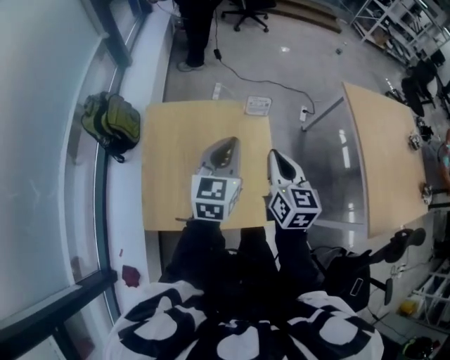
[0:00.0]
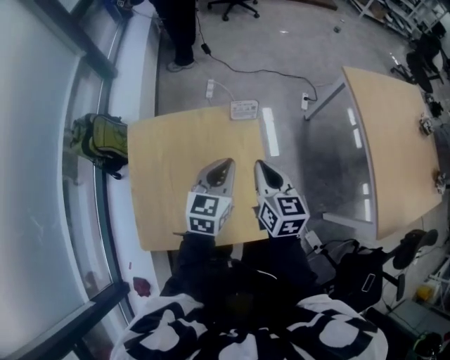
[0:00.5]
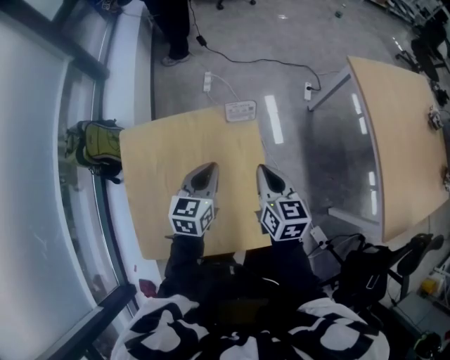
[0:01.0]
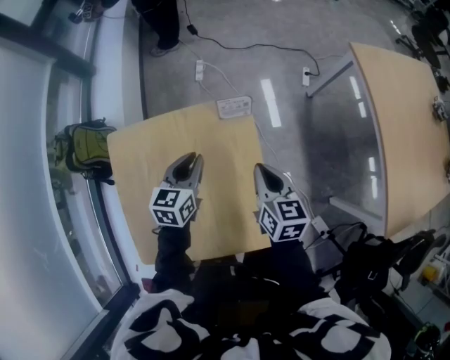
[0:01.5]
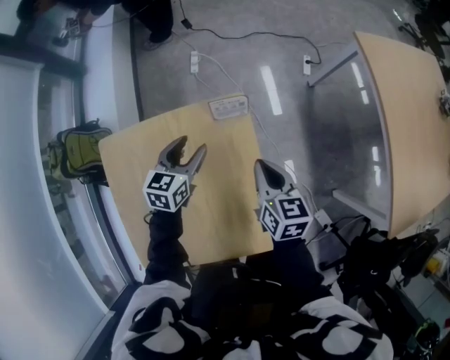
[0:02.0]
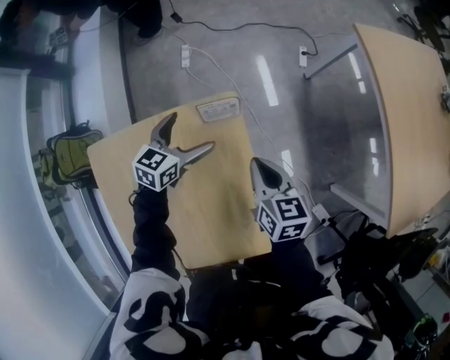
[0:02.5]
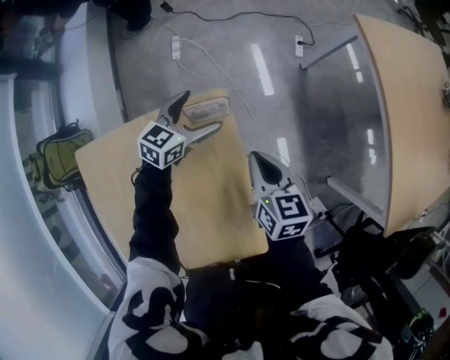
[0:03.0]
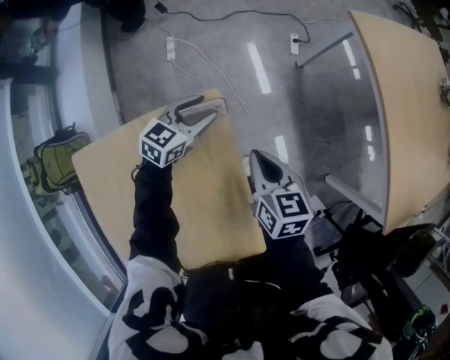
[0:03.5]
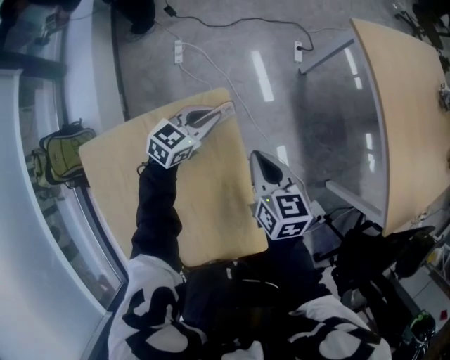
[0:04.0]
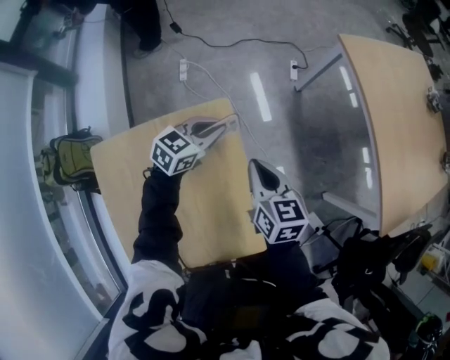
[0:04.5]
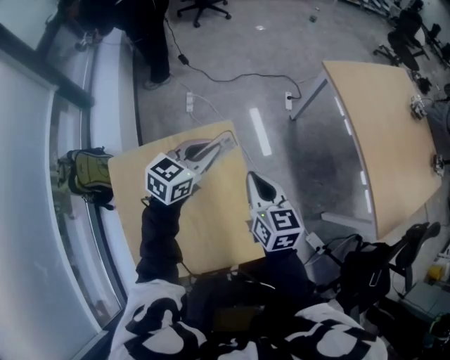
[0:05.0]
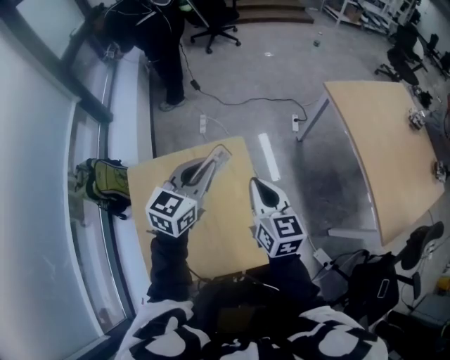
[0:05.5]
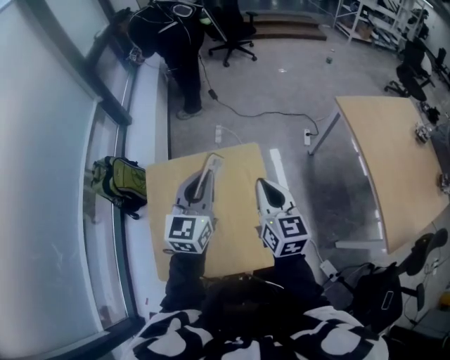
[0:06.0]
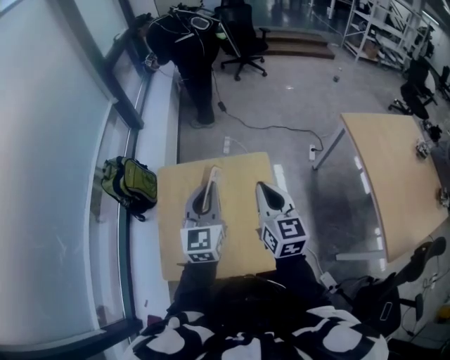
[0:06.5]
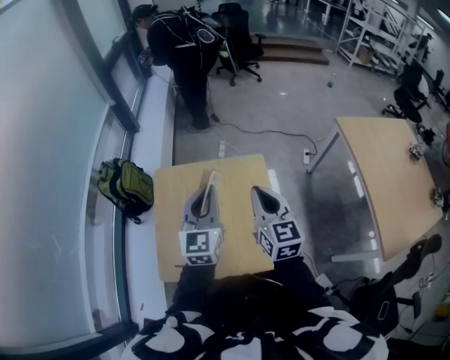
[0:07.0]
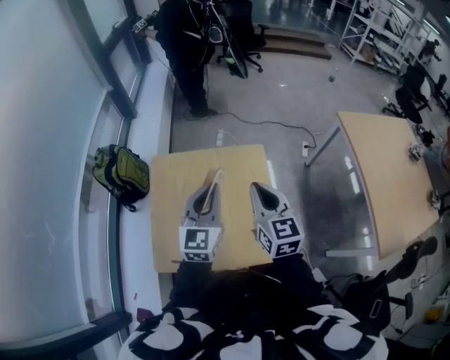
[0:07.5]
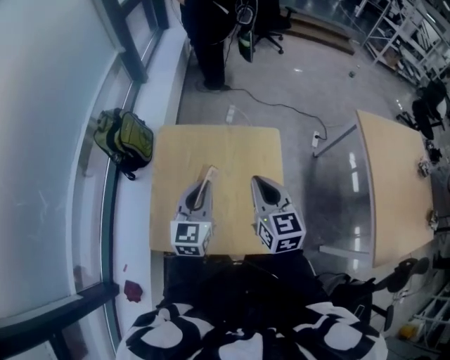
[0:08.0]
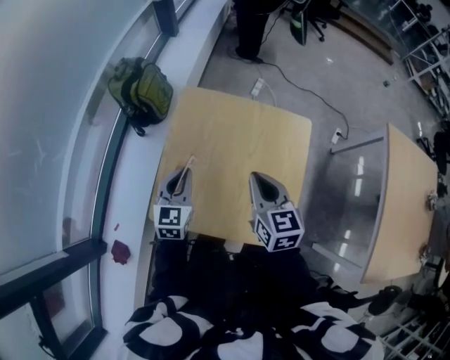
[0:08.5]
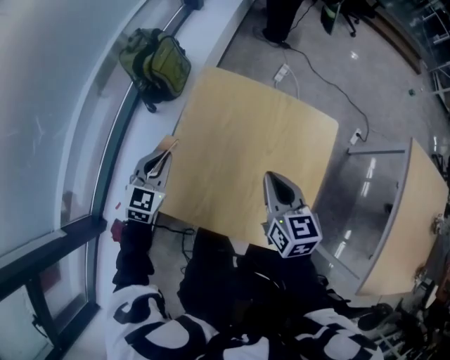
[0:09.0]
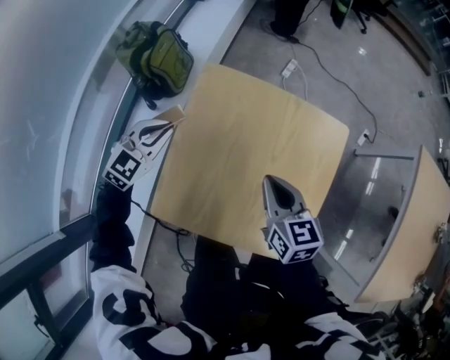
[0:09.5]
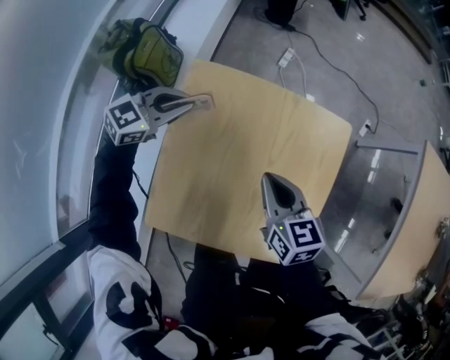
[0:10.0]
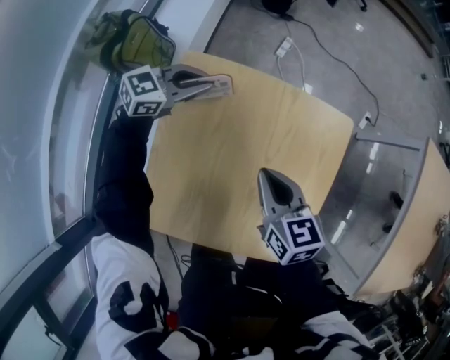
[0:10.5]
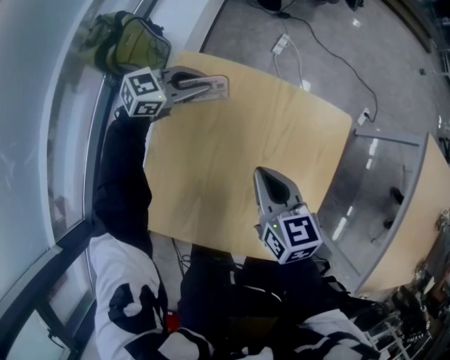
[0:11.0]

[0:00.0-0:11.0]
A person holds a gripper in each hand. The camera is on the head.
0:00.0 to 0:02.0: The two grippers go approximately 25 cm downward and forward. The right gripper changes its angle by some 20 degrees, while the left gripper turns by approximately 30 degrees, and opens.
0:02.0 to 0:03.5: The left gripper travels forward and to the right by some 15 cm, turns by some 30 degrees, and opens and closes again. Meanwhile the right gripper heads forward, covering roughly 5 cm.
0:03.5 to 0:05.5: The right gripper heads upward and backward, covering approximately 25 cm, and rotates about 20 degrees. The left gripper goes roughly 35 cm upward and backward, swivels about 20 degrees, and closes its fingers.
0:05.5 to 0:07.5: The left gripper travels backward and to the left by about 15 cm, and turns by roughly 30 degrees, while the right gripper shifts roughly 10 cm to the left and backward.
0:07.5 to 0:09.0: The right gripper shifts some 15 cm downward and to the left, and changes its angle by about 30 degrees. The left gripper moves to the left and downward, about 35 cm, and turns by approximately 30 degrees.
0:09.0 to 0:11.0: The right gripper heads downward, covering approximately 5 cm. The left gripper changes place by approximately 25 cm, and turns by approximately 50 degrees.

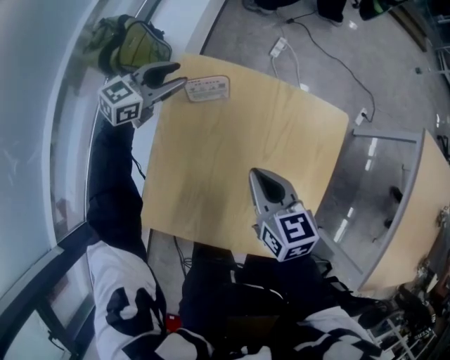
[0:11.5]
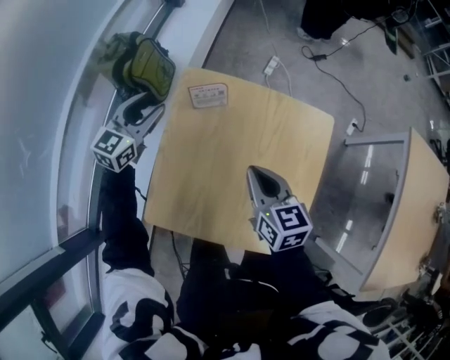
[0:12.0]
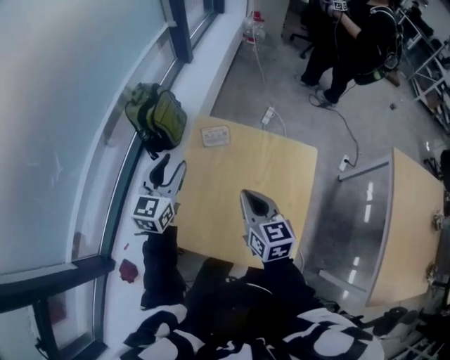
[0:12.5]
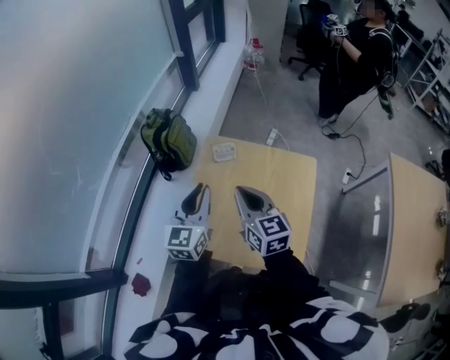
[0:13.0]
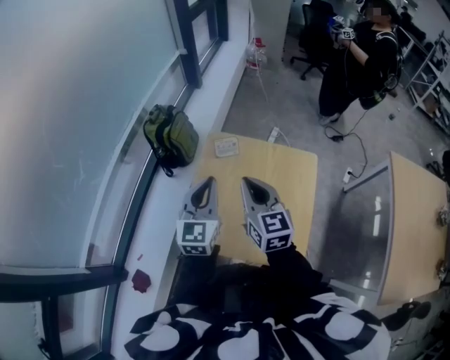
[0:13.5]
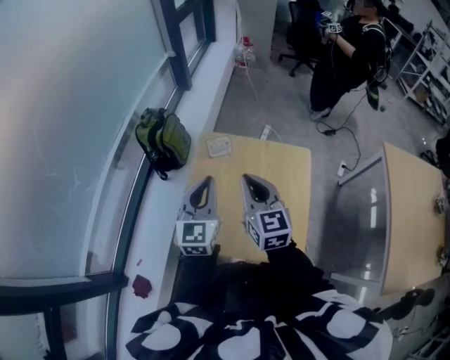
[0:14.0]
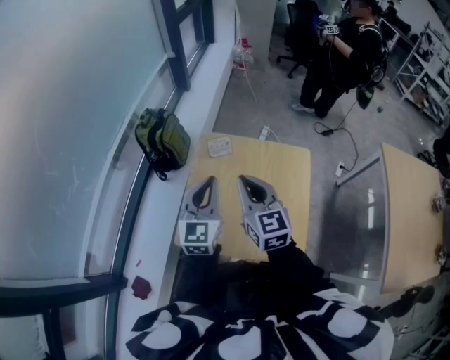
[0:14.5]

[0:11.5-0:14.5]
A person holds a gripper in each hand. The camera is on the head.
0:11.5 to 0:13.0: The right gripper travels upward by approximately 15 cm, and swivels some 20 degrees, while the left gripper goes about 35 cm backward and upward, and changes its angle by roughly 40 degrees.
0:13.0 to 0:14.5: The grippers stay close to where they were, moving slightly.

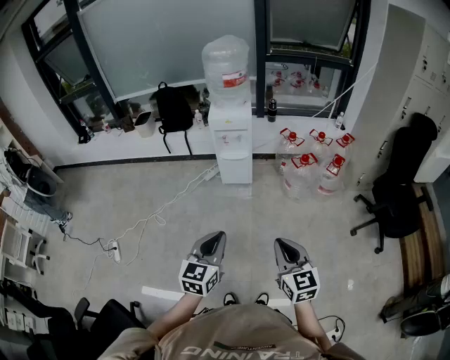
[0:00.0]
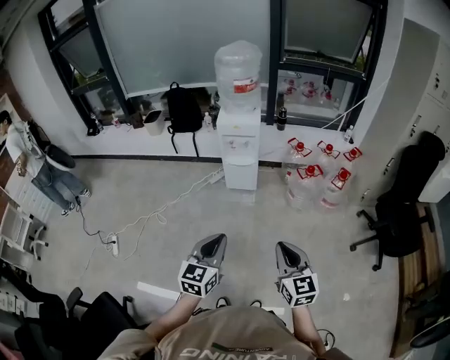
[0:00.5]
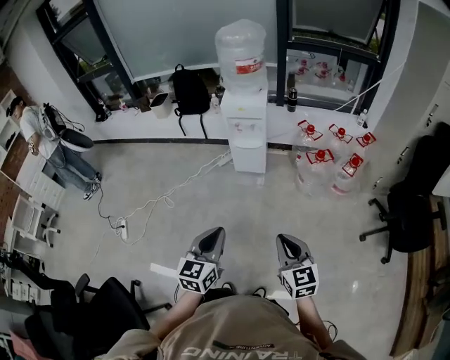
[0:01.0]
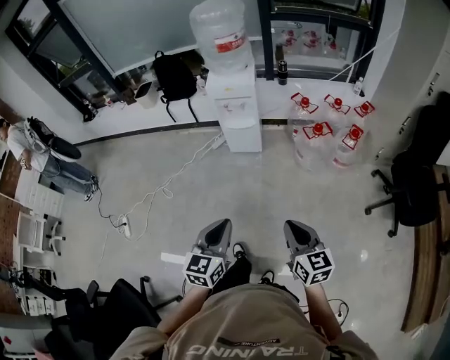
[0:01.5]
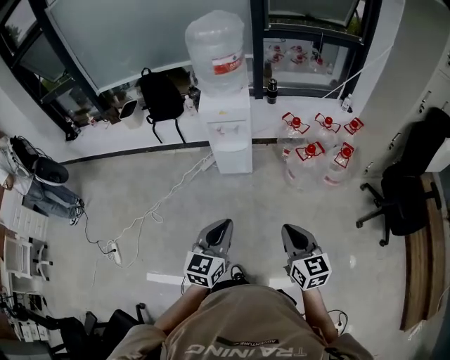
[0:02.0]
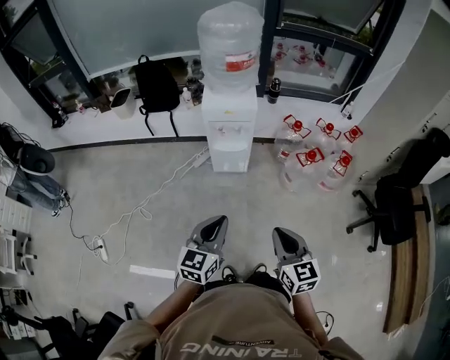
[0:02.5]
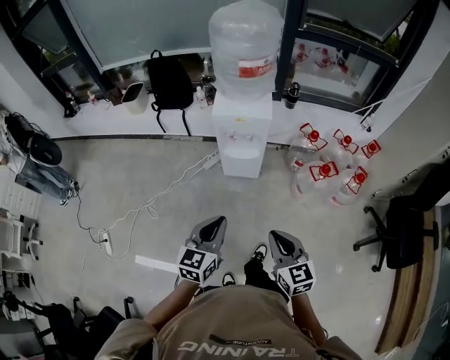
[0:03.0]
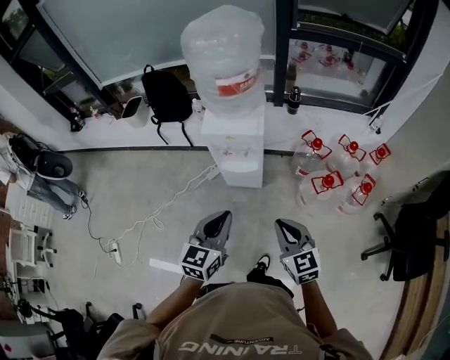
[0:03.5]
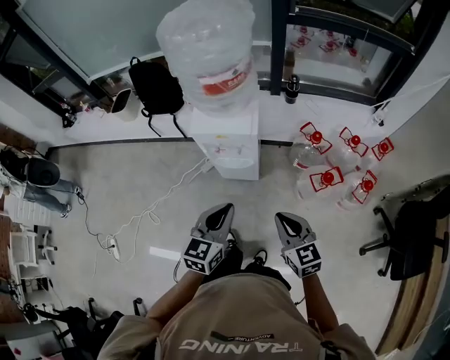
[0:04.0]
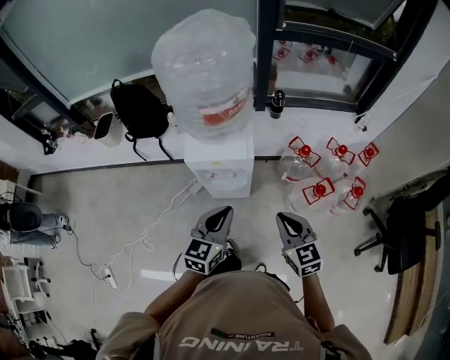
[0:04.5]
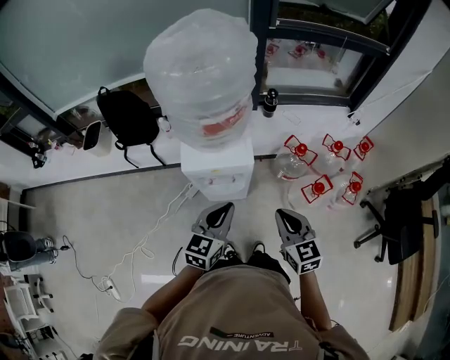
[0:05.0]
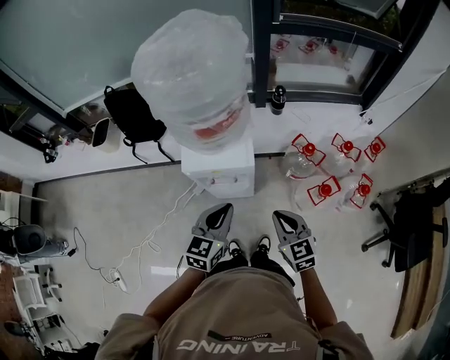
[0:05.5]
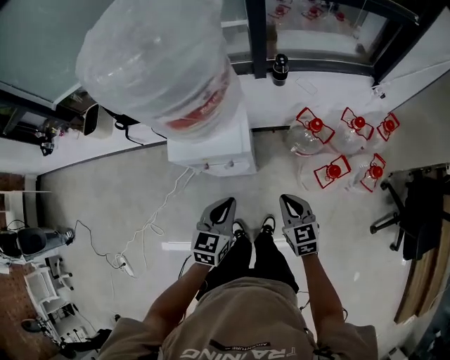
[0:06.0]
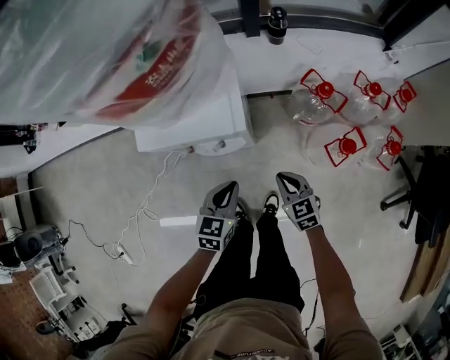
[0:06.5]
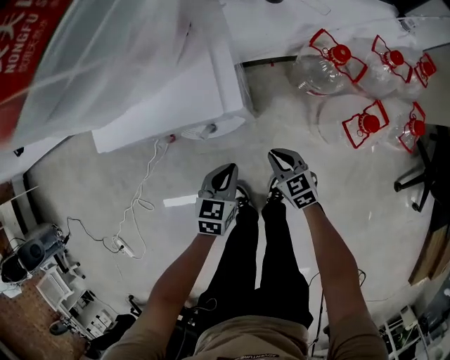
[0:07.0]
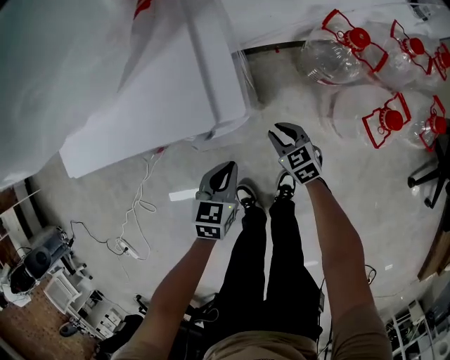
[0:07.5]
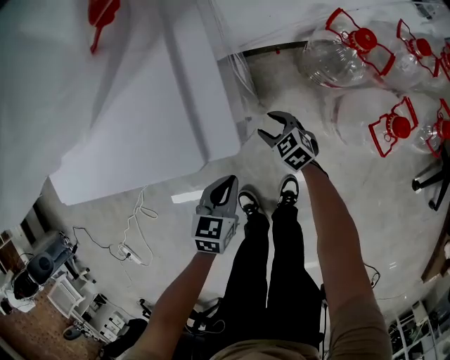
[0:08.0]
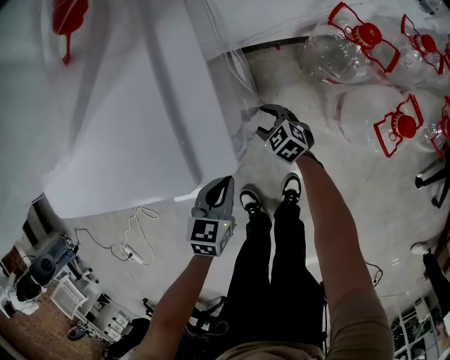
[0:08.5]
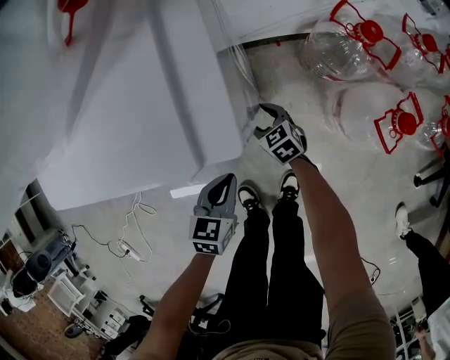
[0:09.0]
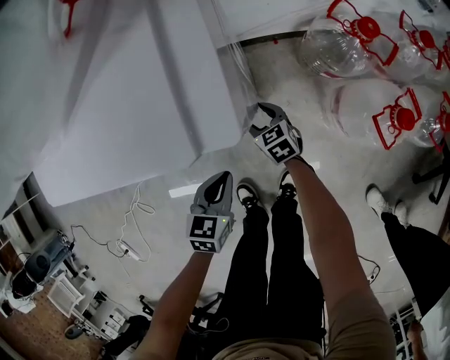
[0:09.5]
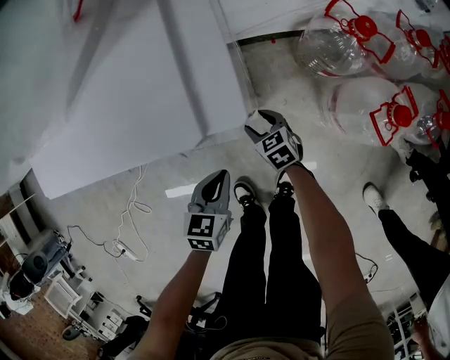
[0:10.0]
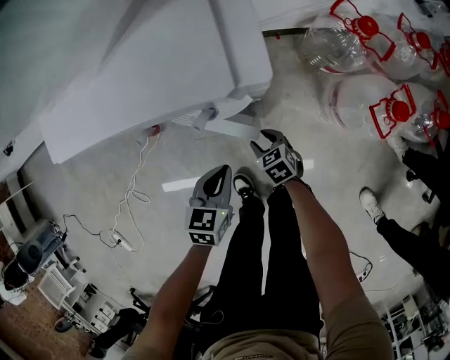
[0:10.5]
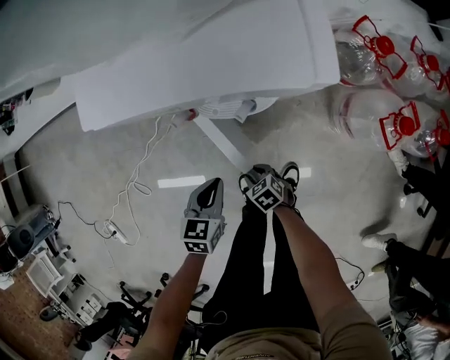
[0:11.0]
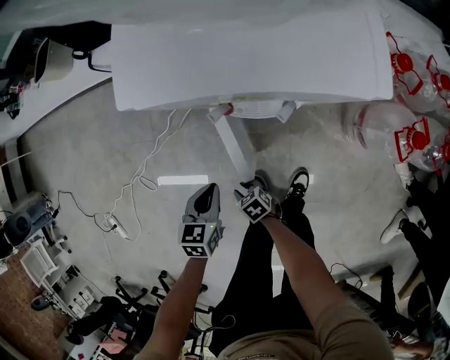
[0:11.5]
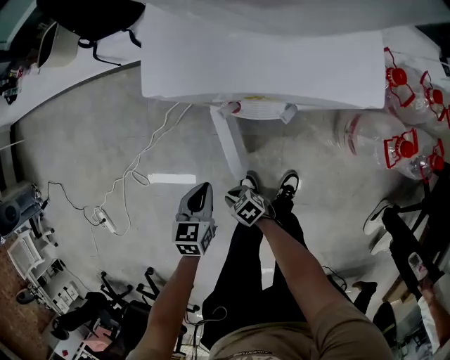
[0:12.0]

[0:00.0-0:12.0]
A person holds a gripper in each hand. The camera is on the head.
0:00.0 to 0:02.0: The two grippers go some 15 cm forward.
0:02.0 to 0:04.0: Both grippers move forward, about 35 cm.
0:04.0 to 0:06.0: Both grippers travel together forward and downward, approximately 20 cm.
0:06.0 to 0:08.0: The grippers both shift downward by some 40 cm. The right gripper rotates about 30 degrees, and opens.
0:08.0 to 0:10.0: The grippers move only a little.
0:10.0 to 0:12.0: The left gripper ends up some 20 cm from where it was. The right gripper ends up some 35 cm from where it was, swivels about 40 degrees, and closes.
